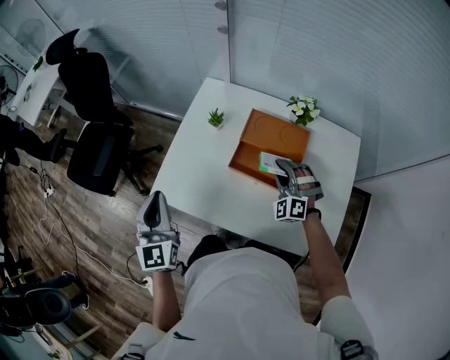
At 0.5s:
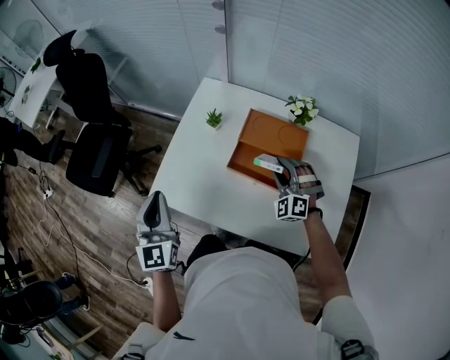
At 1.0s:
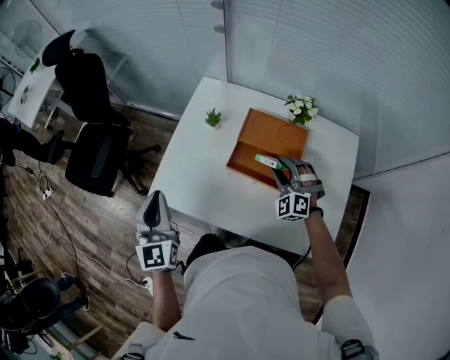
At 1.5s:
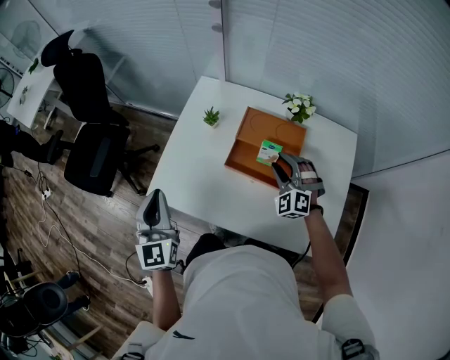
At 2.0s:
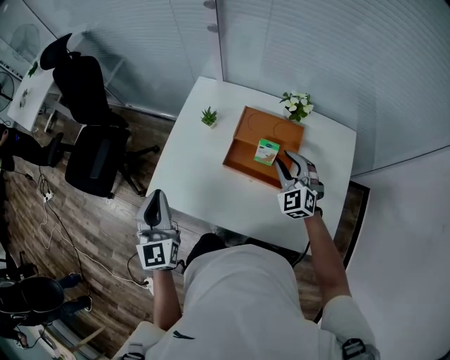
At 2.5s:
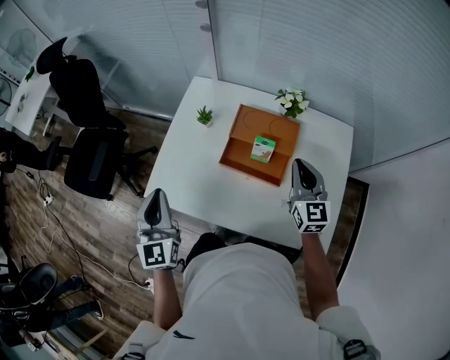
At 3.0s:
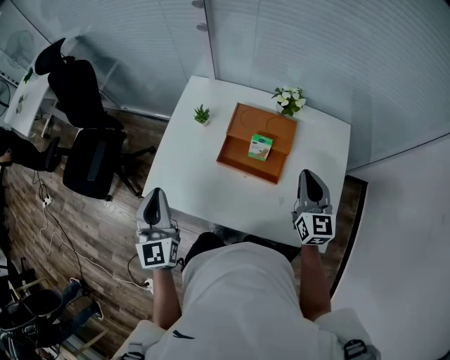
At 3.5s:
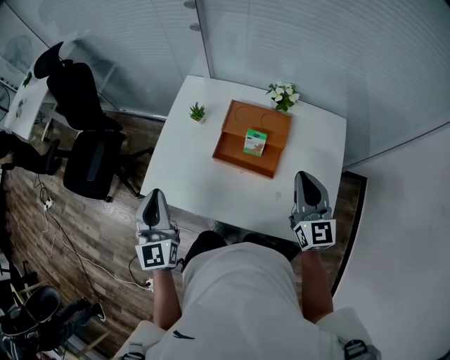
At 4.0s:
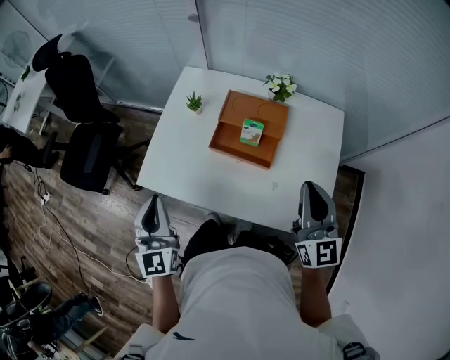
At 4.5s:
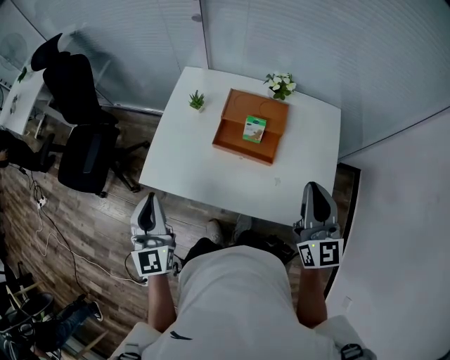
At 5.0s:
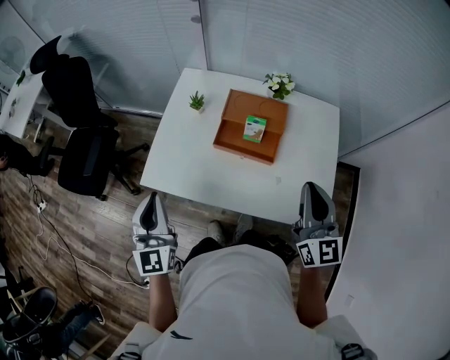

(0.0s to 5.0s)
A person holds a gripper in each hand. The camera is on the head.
0.0s - 2.5s: The right gripper shifts about 15 cm upward and to the right, twists about 60 degrees clockwise, seen from behind, and opens, then closes once more.
2.5s - 5.0s: The right gripper travels backward and upward by roughly 20 cm; the left gripper moves backward, approximately 10 cm.

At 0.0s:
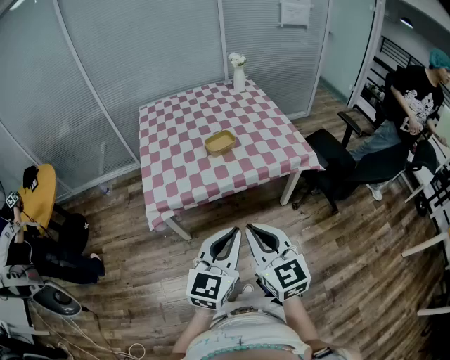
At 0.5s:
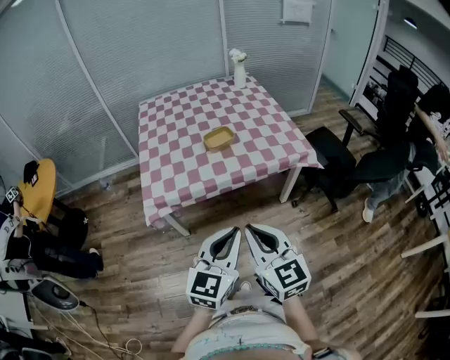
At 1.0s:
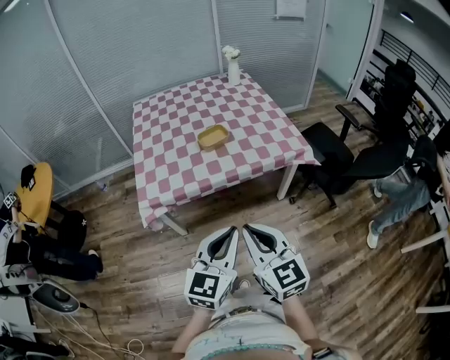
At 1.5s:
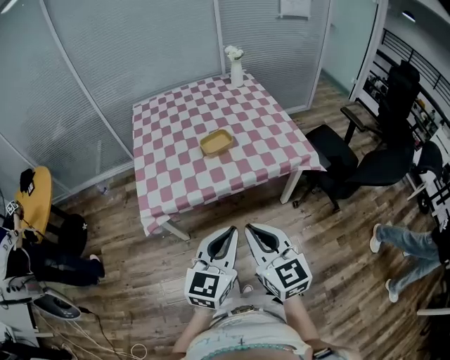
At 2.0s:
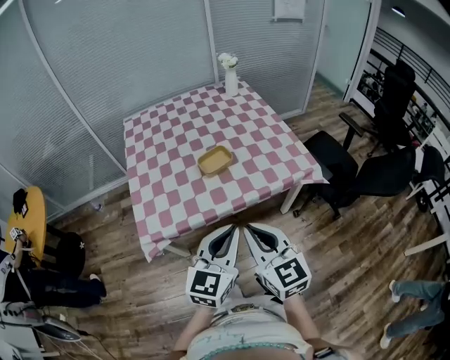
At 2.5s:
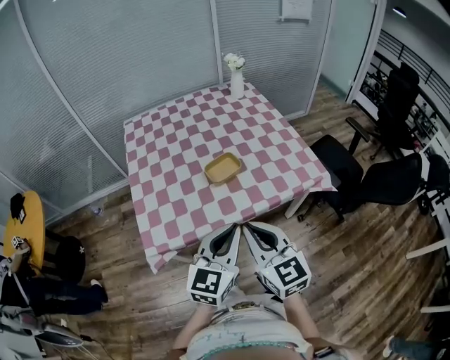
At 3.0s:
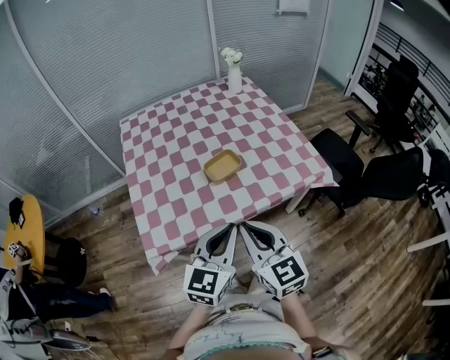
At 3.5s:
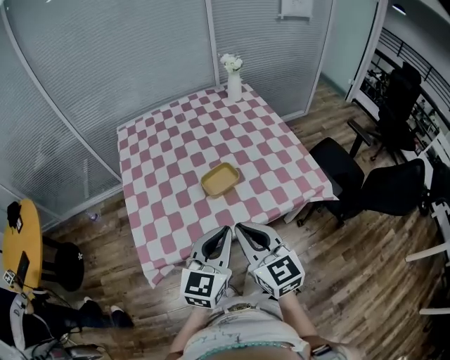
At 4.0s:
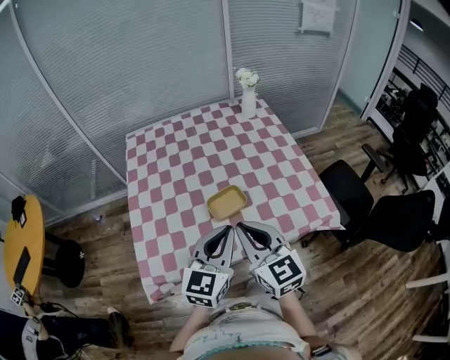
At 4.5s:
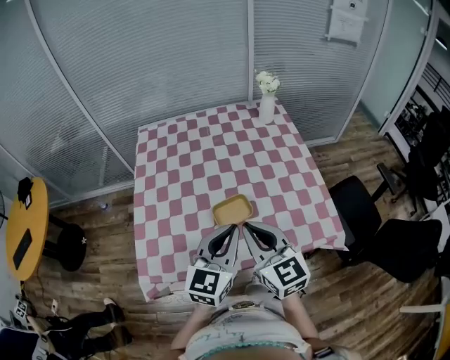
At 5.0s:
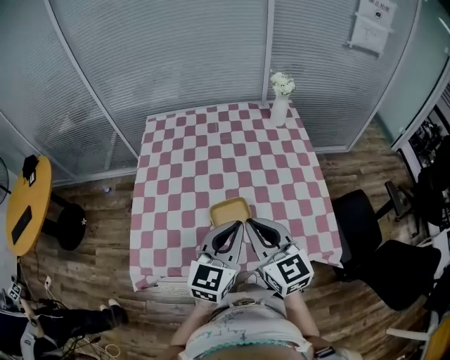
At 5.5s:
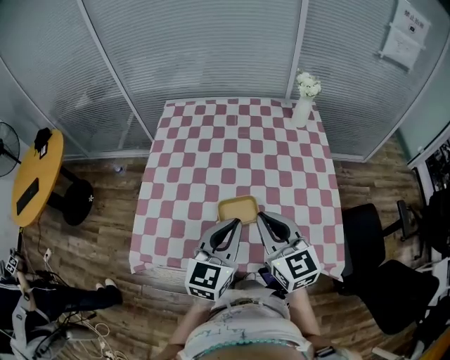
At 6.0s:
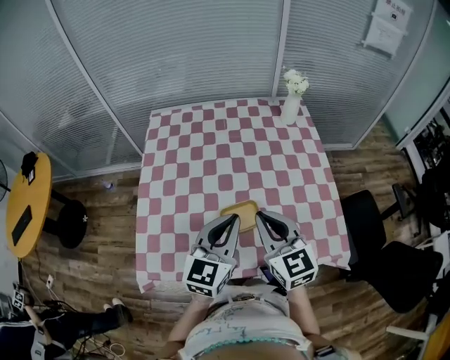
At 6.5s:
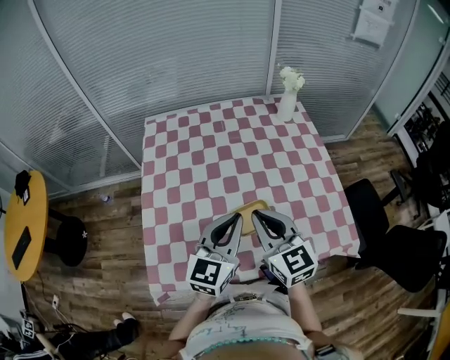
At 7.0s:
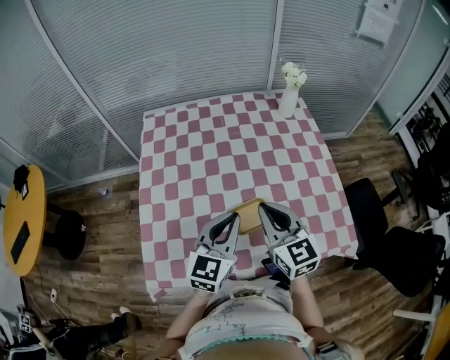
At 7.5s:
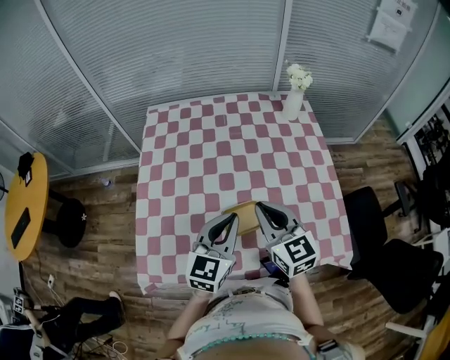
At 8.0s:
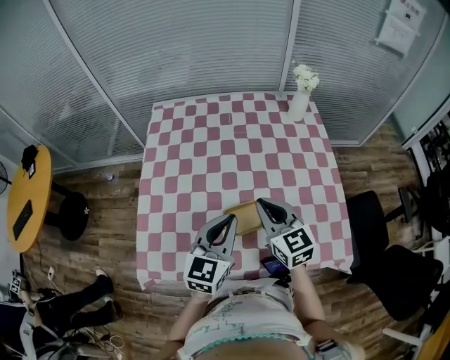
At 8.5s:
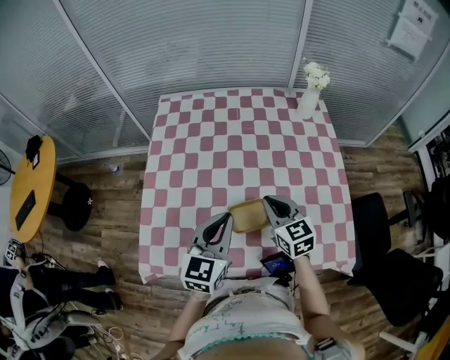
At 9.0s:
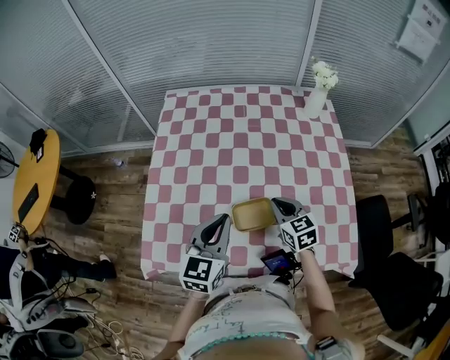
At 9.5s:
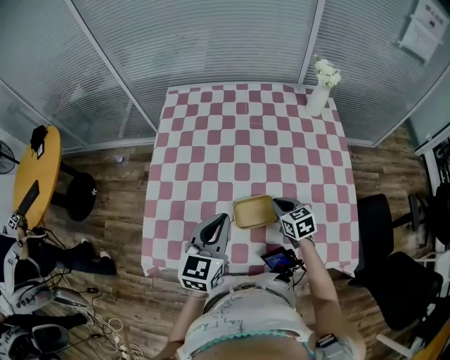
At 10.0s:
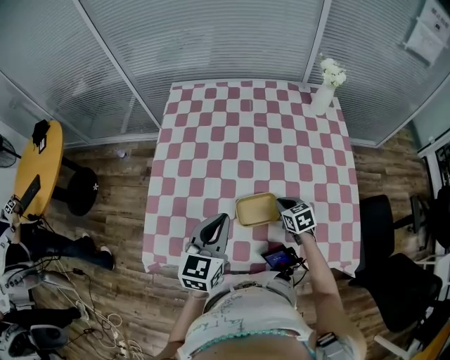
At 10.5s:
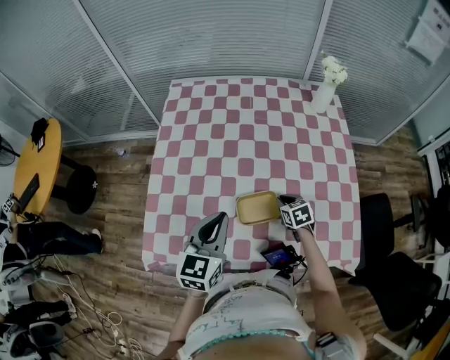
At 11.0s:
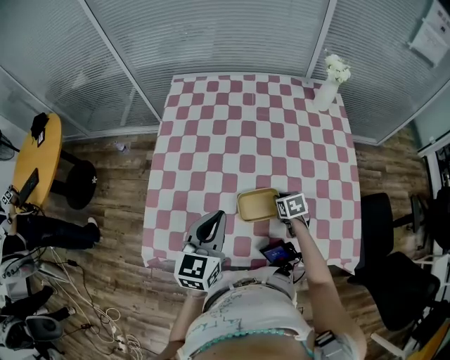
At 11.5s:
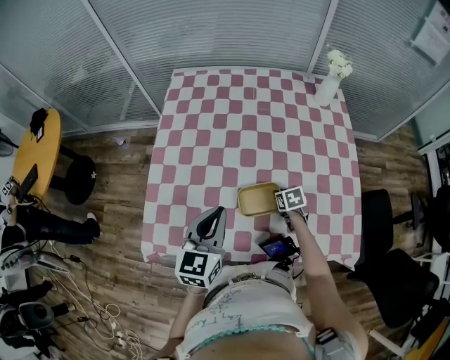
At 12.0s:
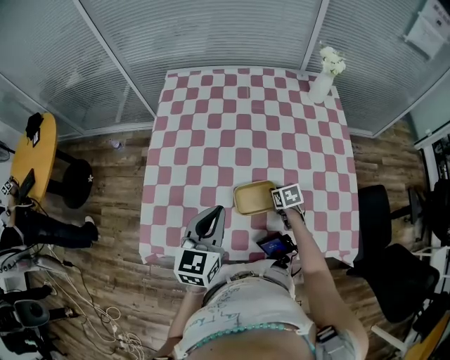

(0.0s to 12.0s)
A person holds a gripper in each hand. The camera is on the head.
0.0s - 2.0s: The grippers both shift forward by some 15 cm.
2.0s - 4.0s: Both grippers move forward, some 25 cm.
4.0s - 6.0s: The grippers both shift forward by about 15 cm.
6.0s - 8.0s: The left gripper changes place by roughly 5 cm; the right gripper travels forward and downward by about 10 cm.
8.0s - 10.0s: The left gripper is displaced to the left by about 5 cm. Meanwhile the right gripper heads downward, covering approximately 25 cm, and tips its fingers downward by roughly 30 degrees.
10.0s - 12.0s: The right gripper goes some 5 cm downward.

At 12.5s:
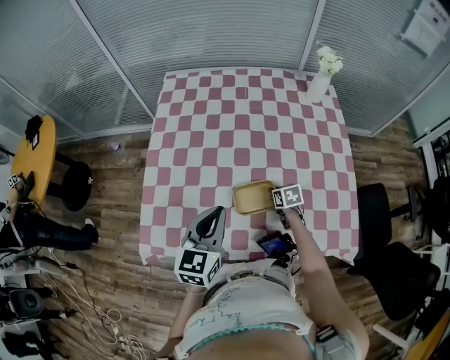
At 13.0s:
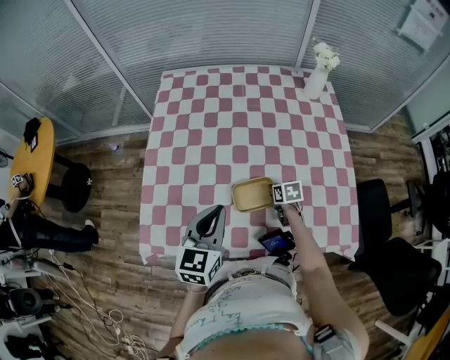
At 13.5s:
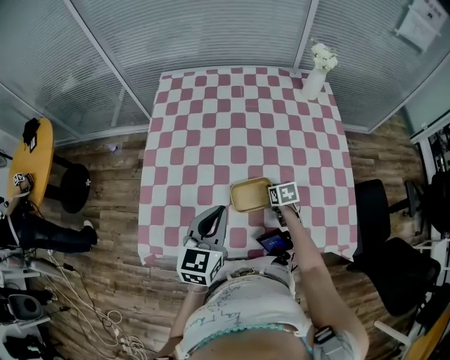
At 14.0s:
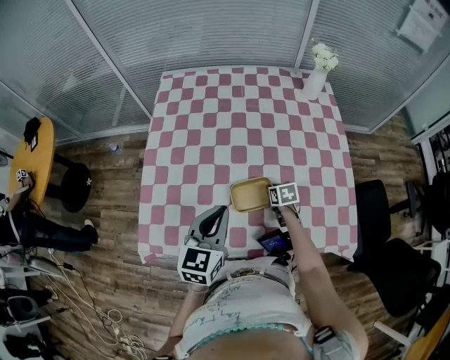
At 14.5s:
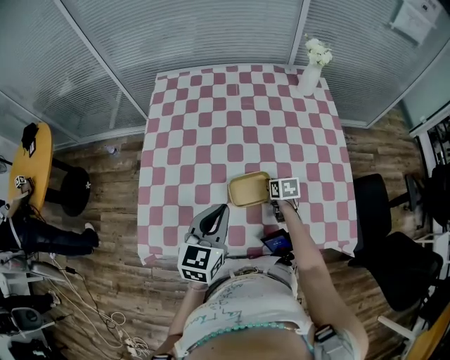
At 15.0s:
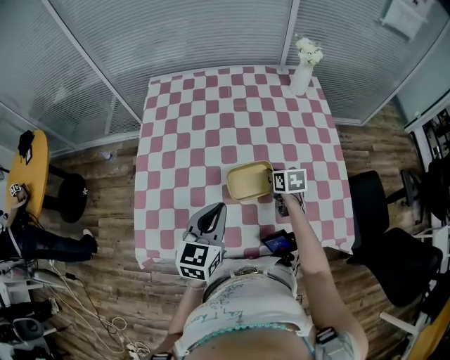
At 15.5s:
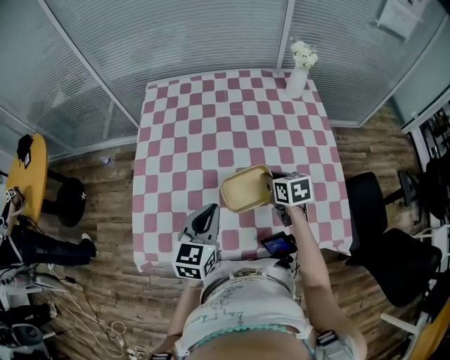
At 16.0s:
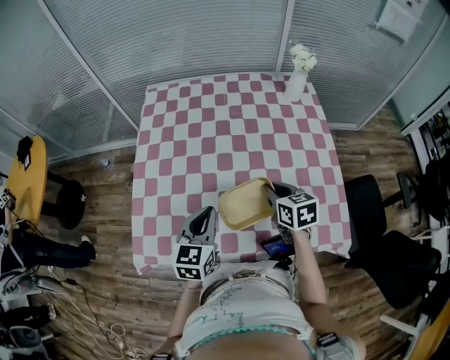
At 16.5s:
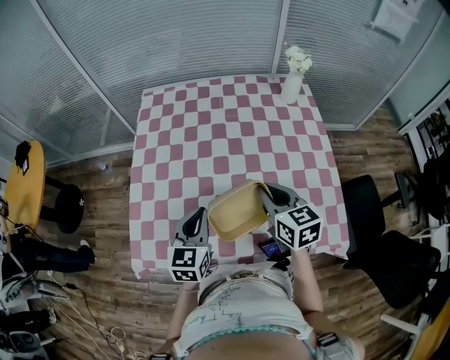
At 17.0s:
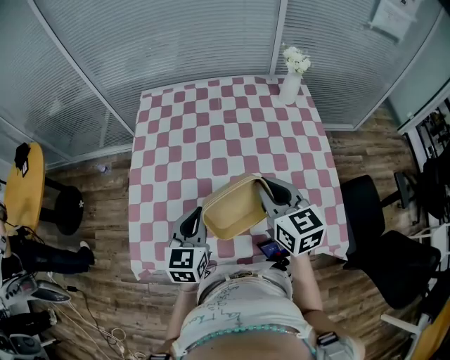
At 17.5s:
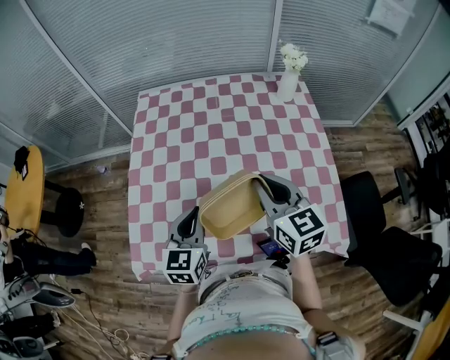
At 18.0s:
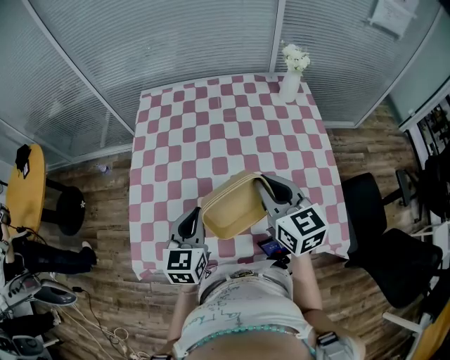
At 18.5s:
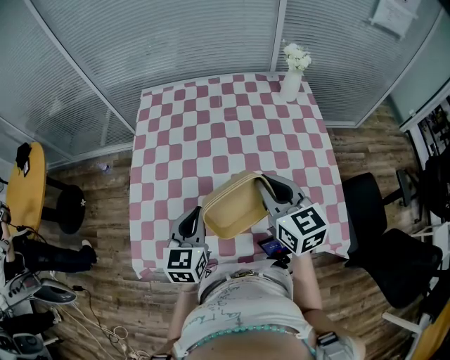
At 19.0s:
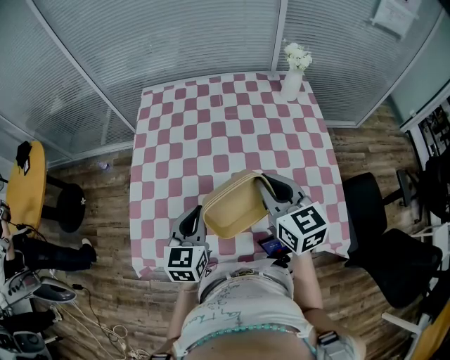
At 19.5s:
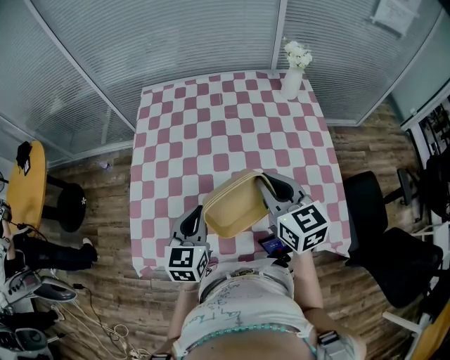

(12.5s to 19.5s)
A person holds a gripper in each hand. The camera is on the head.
12.5s - 14.5s: The grippers stay close to where they were, moving slightly.
14.5s - 16.0s: The right gripper heads upward, covering some 20 cm.
16.0s - 17.5s: The right gripper is displaced upward by roughly 15 cm, and changes its angle by about 30 degrees.
17.5s - 19.5s: Both grippers stay put.

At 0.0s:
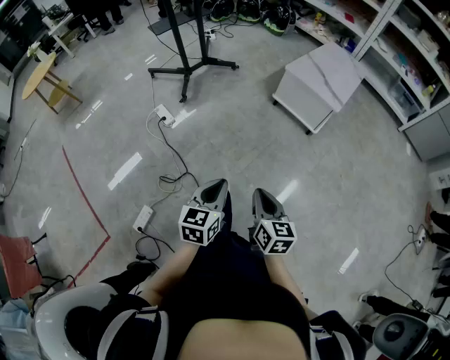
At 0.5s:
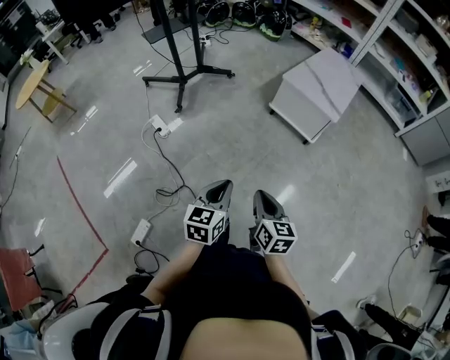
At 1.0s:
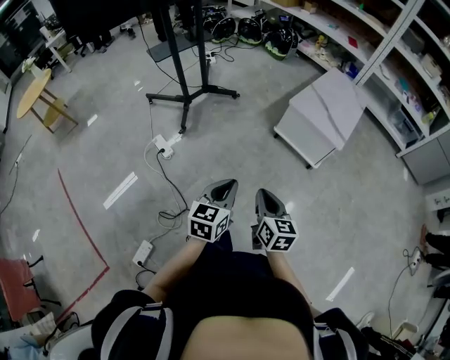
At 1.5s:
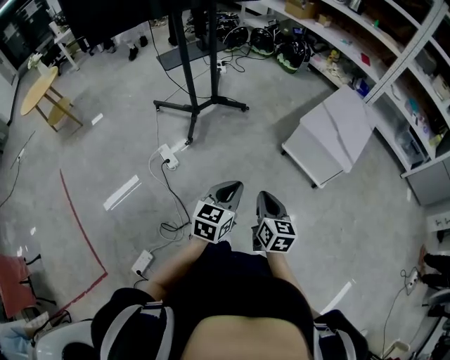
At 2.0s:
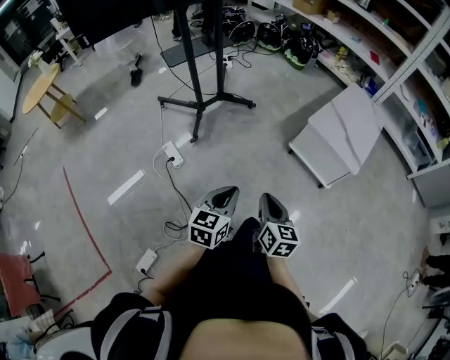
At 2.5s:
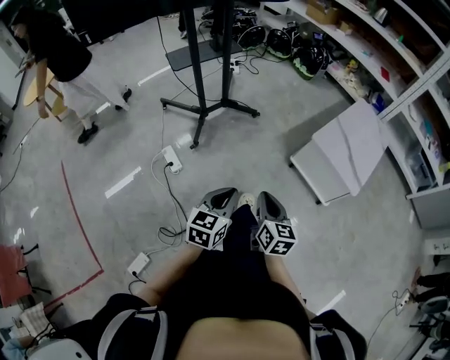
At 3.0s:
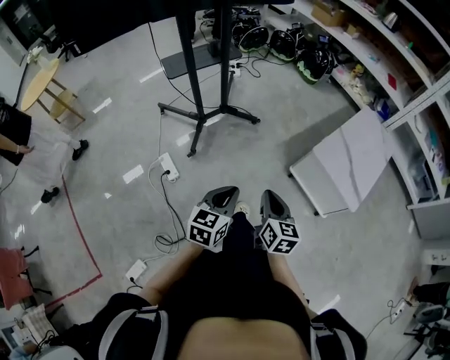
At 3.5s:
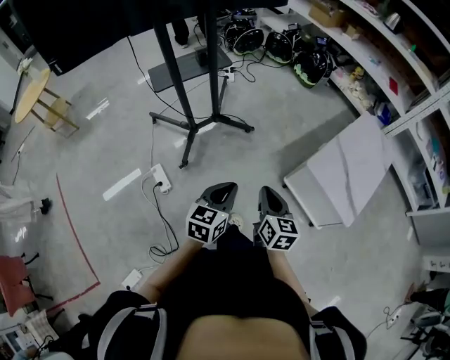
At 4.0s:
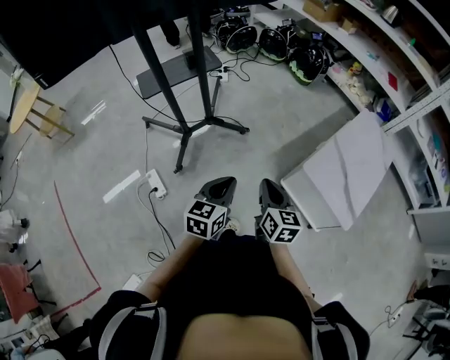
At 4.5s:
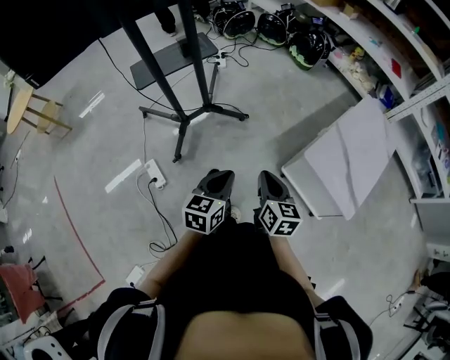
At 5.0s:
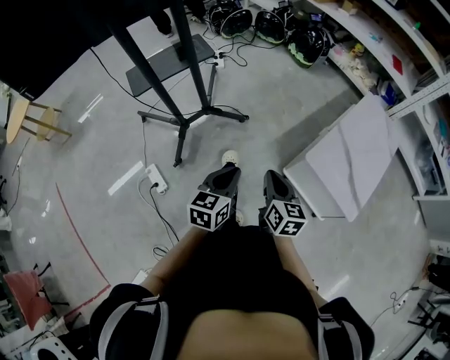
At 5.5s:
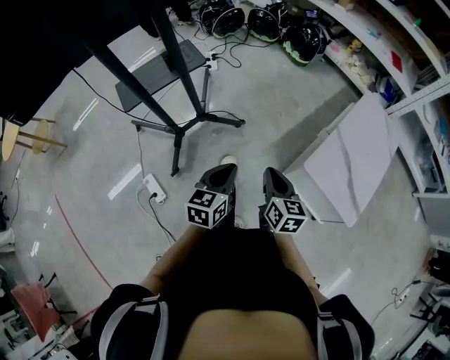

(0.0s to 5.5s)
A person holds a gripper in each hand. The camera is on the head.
0.0s - 2.0s: The grippers both shift forward by some 30 cm.
2.0s - 3.5s: The two grippers go approximately 30 cm forward.
3.5s - 5.5s: Both grippers travel together forward, about 20 cm.
